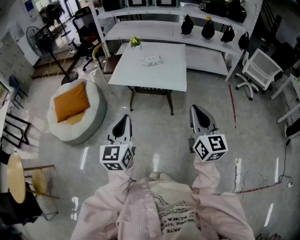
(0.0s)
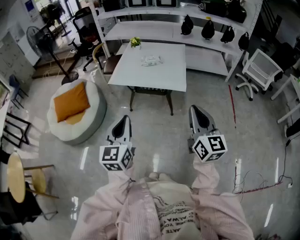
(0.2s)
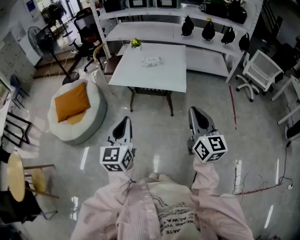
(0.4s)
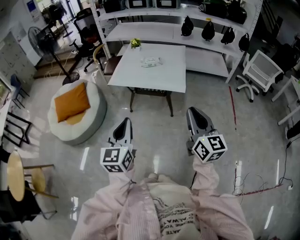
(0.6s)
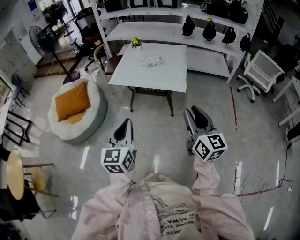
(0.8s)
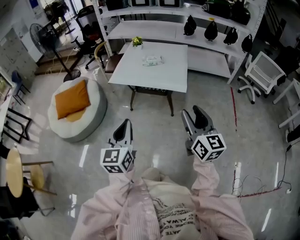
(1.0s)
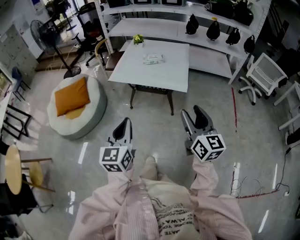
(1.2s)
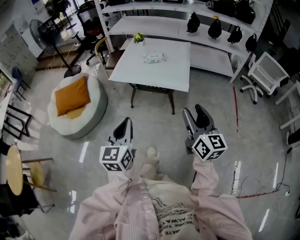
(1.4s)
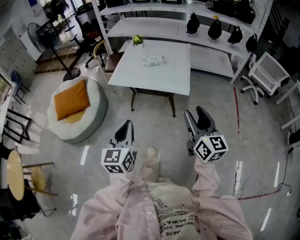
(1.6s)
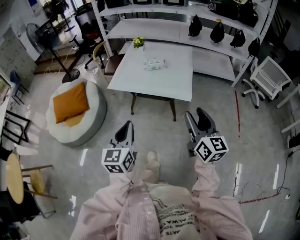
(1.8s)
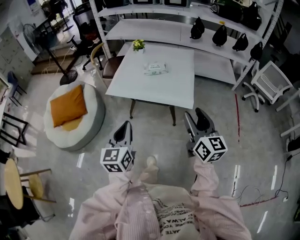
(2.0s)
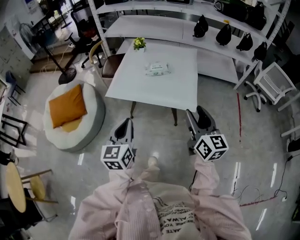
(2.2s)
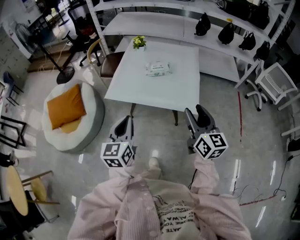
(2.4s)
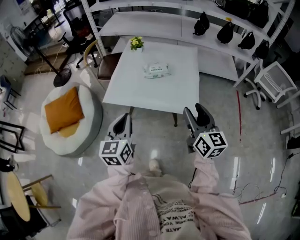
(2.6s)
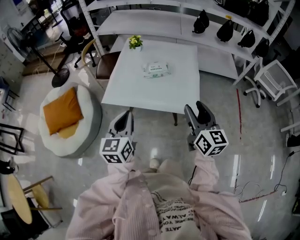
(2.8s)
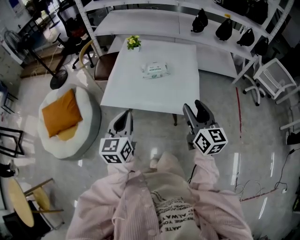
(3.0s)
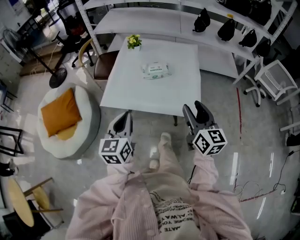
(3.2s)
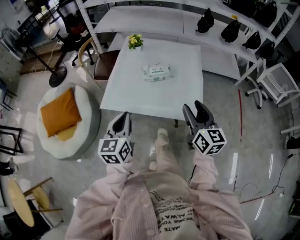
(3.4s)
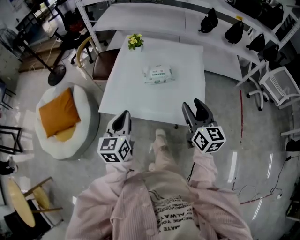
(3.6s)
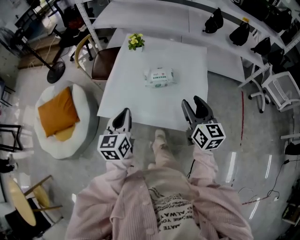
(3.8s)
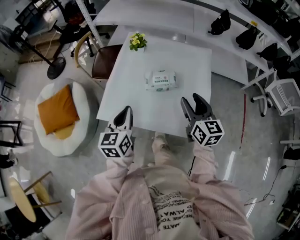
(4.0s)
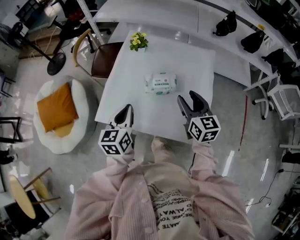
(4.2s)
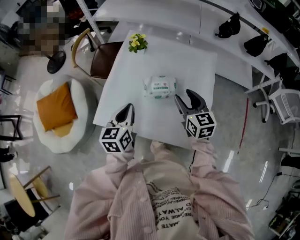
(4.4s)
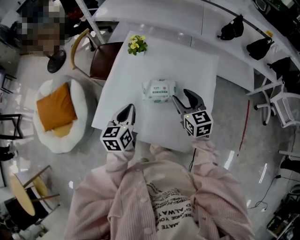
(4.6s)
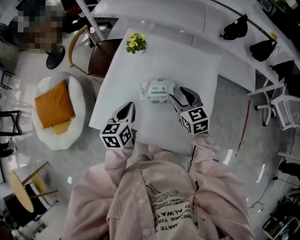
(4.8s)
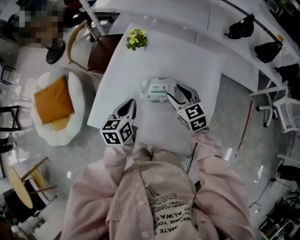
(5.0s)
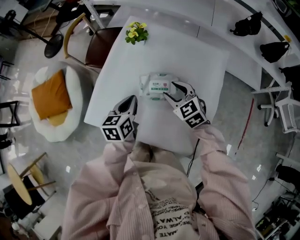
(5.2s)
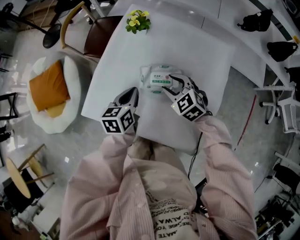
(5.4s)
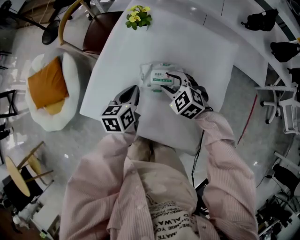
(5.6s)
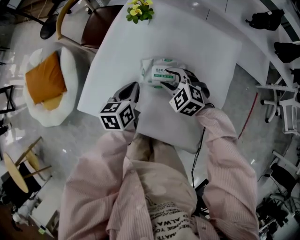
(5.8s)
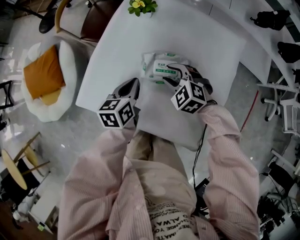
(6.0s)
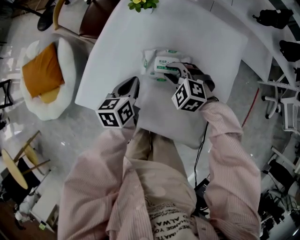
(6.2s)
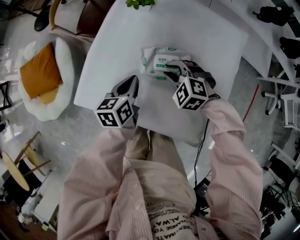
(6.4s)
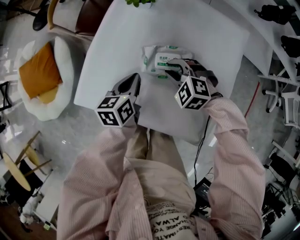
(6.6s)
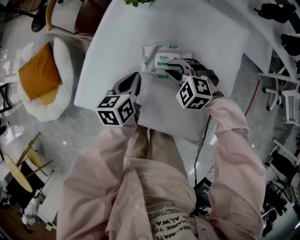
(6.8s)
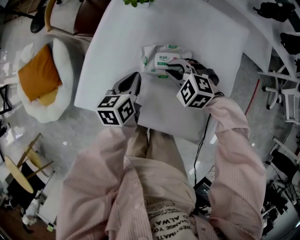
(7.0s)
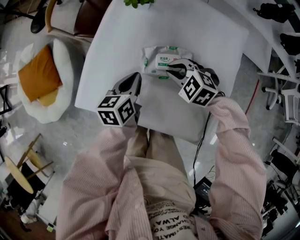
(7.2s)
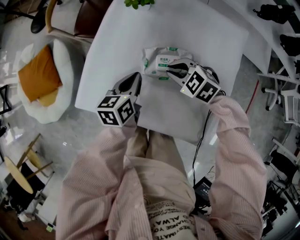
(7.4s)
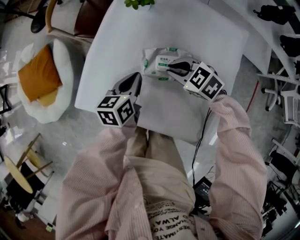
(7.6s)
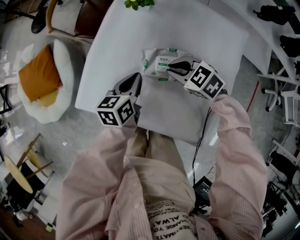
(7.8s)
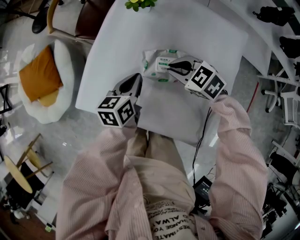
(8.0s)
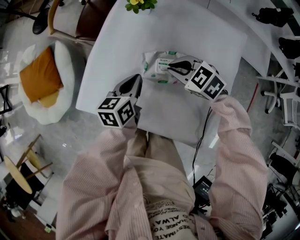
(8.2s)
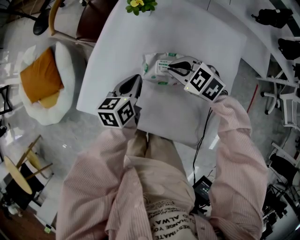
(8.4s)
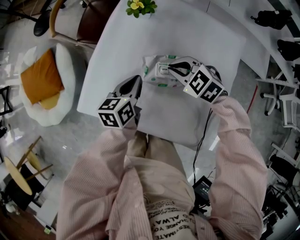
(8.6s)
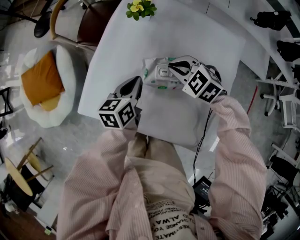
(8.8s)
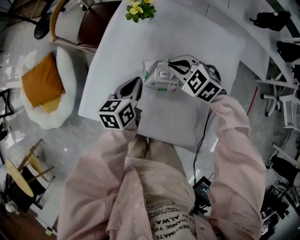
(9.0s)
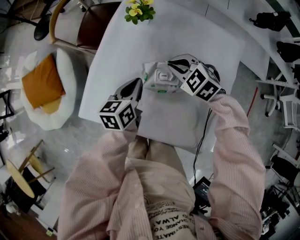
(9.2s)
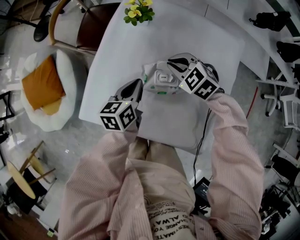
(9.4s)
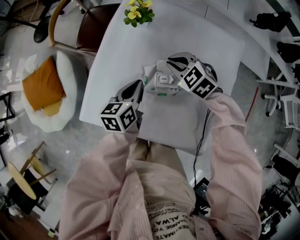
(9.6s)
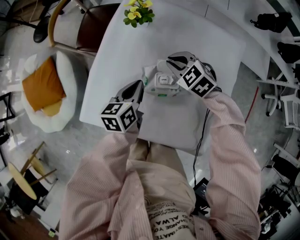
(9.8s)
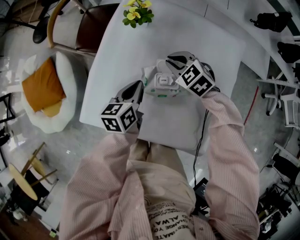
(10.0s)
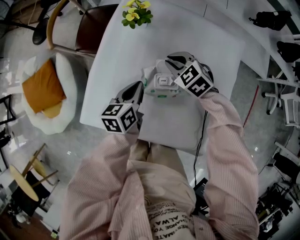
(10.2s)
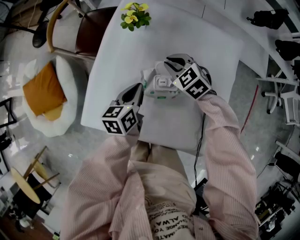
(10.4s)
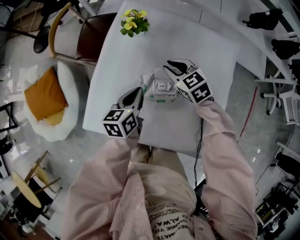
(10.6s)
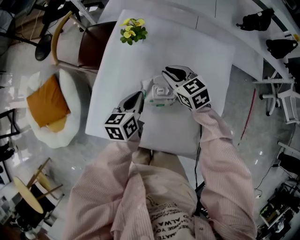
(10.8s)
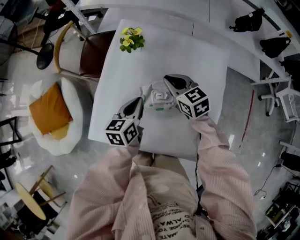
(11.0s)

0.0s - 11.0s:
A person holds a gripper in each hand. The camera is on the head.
0.0s - 1.6s: The left gripper changes place by some 5 cm. Meanwhile the right gripper is displaced forward by roughly 5 cm, and opens its fingers.
1.6s - 3.2s: Both grippers move forward, approximately 30 cm.
3.2s - 4.8s: Both grippers move forward and downward, some 35 cm. The right gripper turns by roughly 30 degrees. Meanwhile the left gripper swivels about 20 degrees.
4.8s - 6.2s: The left gripper moves downward, some 10 cm, while the right gripper moves downward and to the left, roughly 15 cm, rotates around the line of its fingers by approximately 50 degrees, counterclockwise from behind, and closes.
6.2s - 7.8s: The right gripper turns by about 30 degrees.
7.8s - 9.4s: The right gripper travels forward by roughly 5 cm.
9.4s - 11.0s: The right gripper moves upward, approximately 5 cm, and swivels approximately 40 degrees.

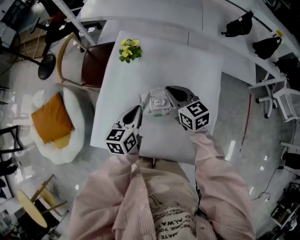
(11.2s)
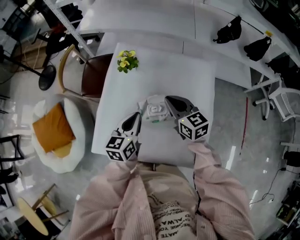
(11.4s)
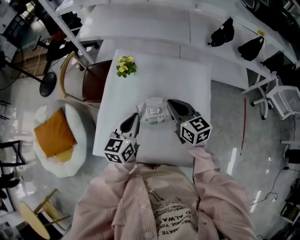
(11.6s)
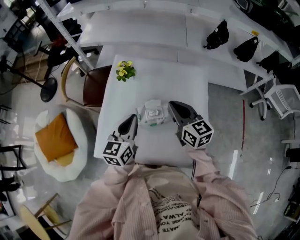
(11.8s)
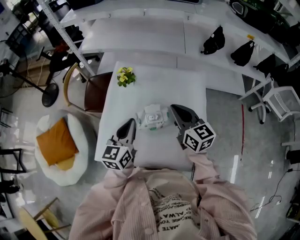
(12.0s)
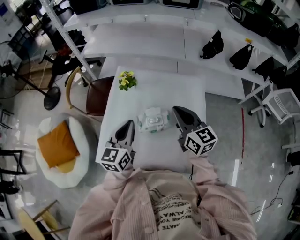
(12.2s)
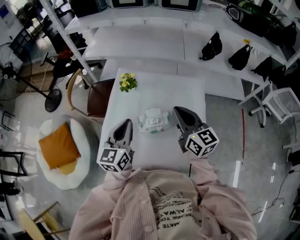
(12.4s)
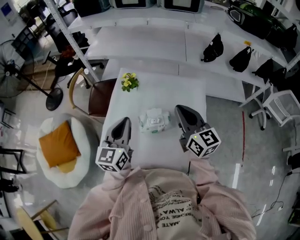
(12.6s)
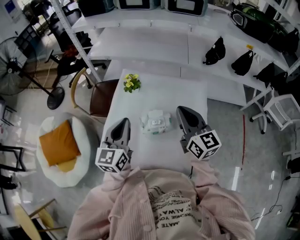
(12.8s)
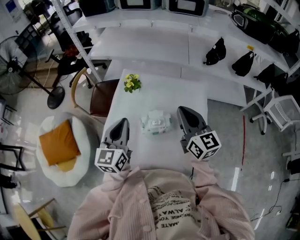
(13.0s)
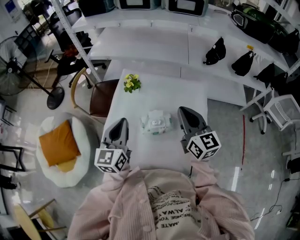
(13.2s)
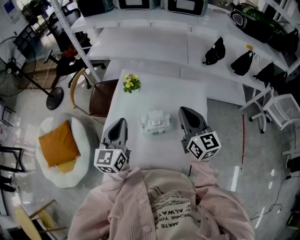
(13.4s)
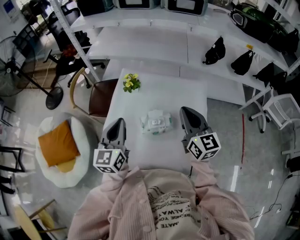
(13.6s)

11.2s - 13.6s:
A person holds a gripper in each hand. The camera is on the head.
11.2s - 12.4s: The left gripper travels upward by approximately 15 cm, and turns by some 20 degrees. The right gripper goes about 20 cm upward and backward, and changes its angle by some 30 degrees.
12.4s - 13.6s: There are only small adjustments of the grippers.

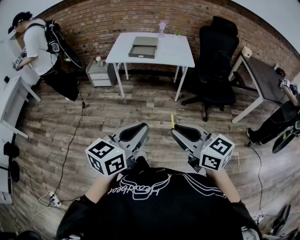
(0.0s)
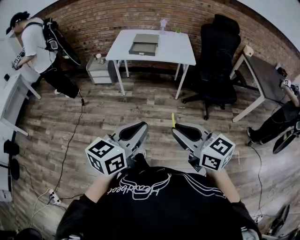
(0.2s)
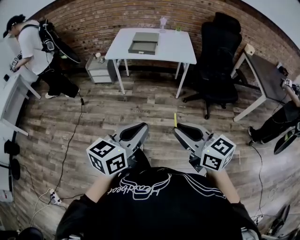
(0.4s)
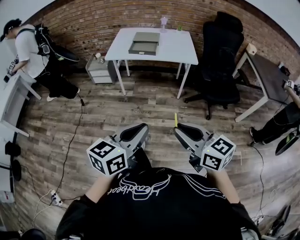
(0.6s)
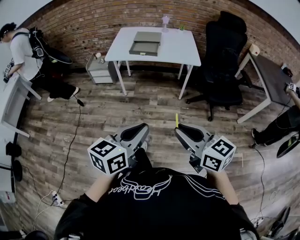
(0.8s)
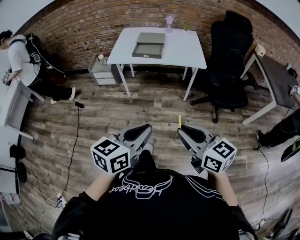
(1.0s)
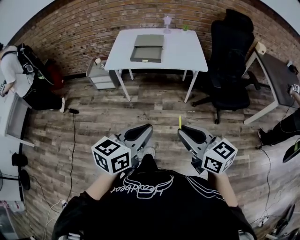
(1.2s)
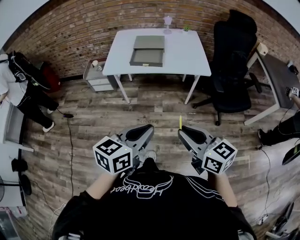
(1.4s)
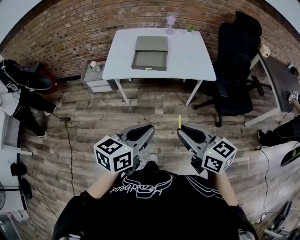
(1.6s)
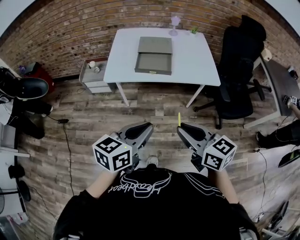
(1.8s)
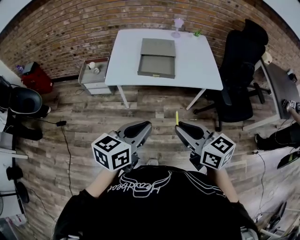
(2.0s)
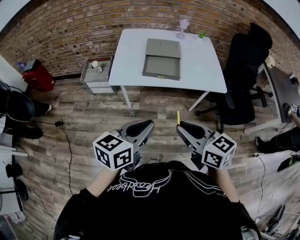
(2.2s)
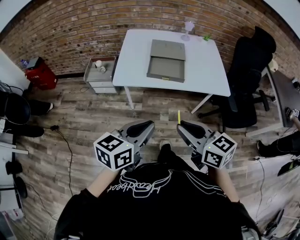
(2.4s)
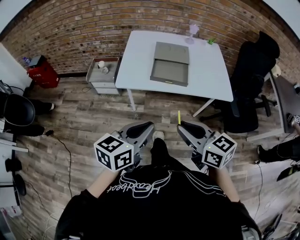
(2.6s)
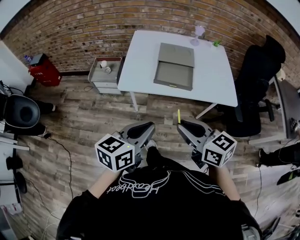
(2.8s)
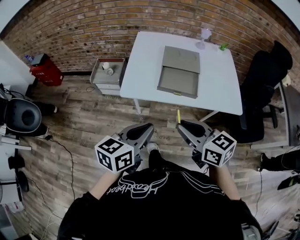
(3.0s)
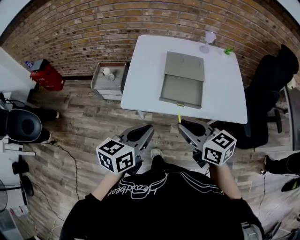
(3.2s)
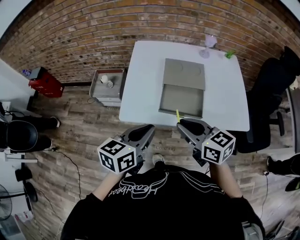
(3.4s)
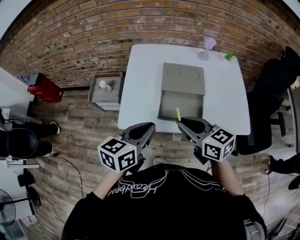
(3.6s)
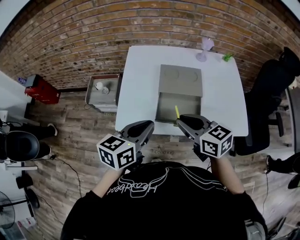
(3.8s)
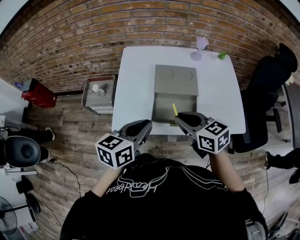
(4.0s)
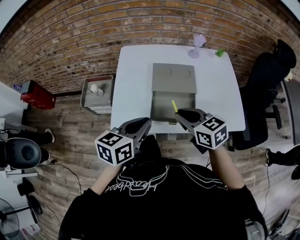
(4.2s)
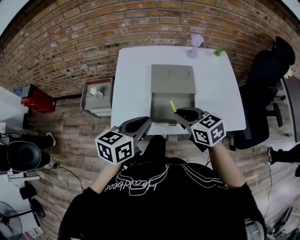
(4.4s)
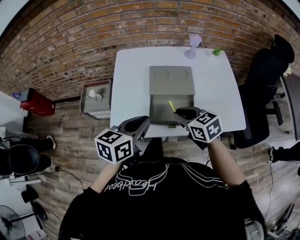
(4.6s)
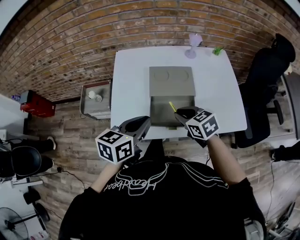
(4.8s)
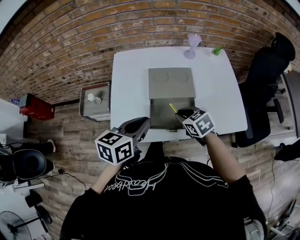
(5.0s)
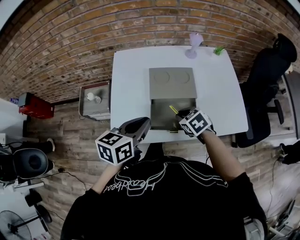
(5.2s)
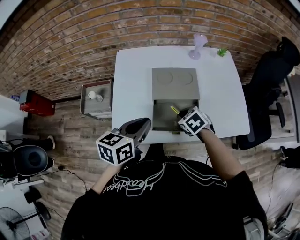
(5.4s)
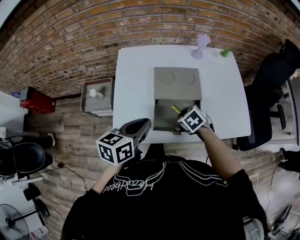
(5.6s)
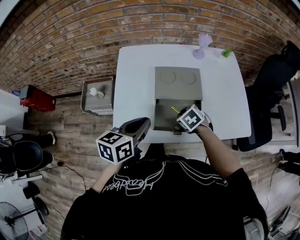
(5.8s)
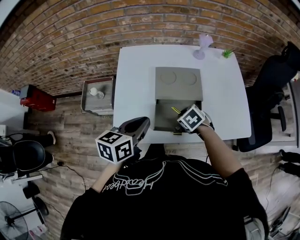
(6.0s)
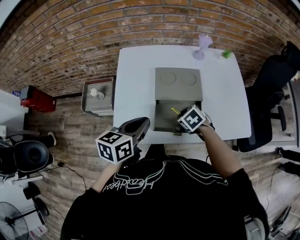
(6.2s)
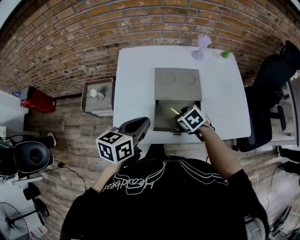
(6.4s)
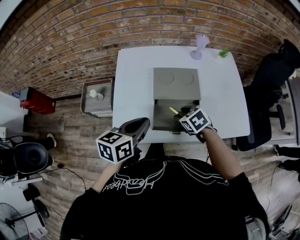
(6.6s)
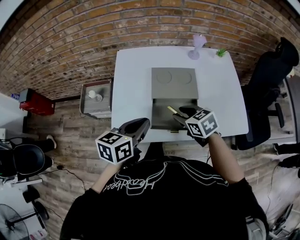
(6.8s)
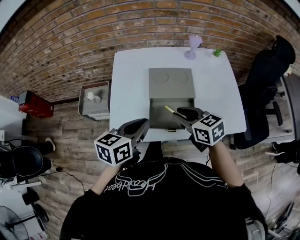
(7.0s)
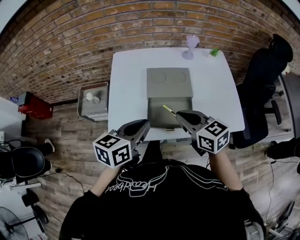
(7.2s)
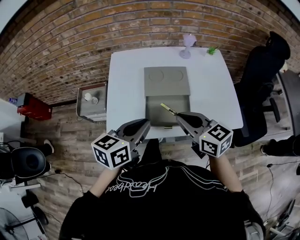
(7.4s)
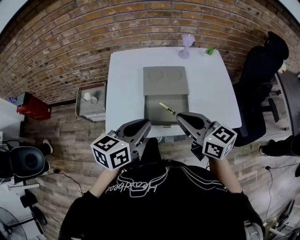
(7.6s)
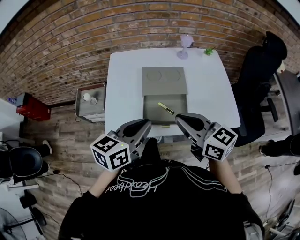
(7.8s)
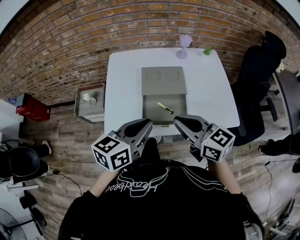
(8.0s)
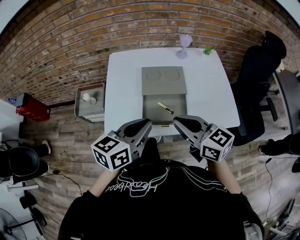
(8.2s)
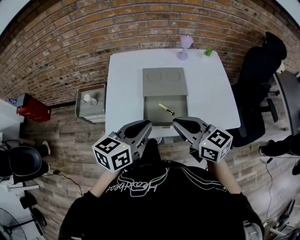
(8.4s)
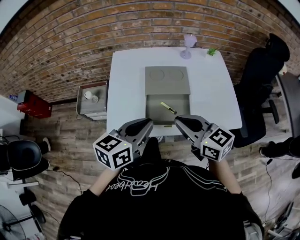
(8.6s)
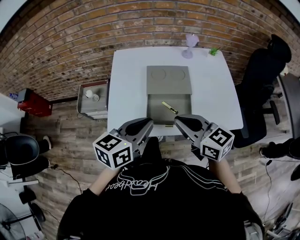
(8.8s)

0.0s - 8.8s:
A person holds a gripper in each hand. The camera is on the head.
0.0s - 1.4s: Both grippers travel together forward, approximately 25 cm.
1.4s - 3.0s: Both grippers travel together forward and to the left, about 30 cm.
3.0s - 4.4s: Both grippers travel together forward, roughly 20 cm.
4.4s - 5.8s: The left gripper heads forward, covering approximately 5 cm. The right gripper shifts about 20 cm downward and forward, and tips its fingers downward by some 40 degrees.
5.8s - 7.4s: The left gripper changes place by roughly 10 cm; the right gripper is displaced upward and backward by roughly 20 cm, angles its fingers upward, by roughly 50 degrees, and opens, then closes again.
7.4s - 8.8s: The grippers stay close to where they were, moving slightly.

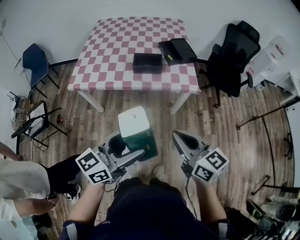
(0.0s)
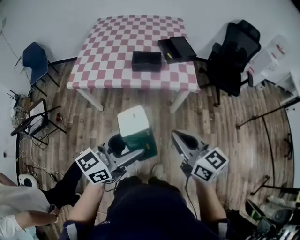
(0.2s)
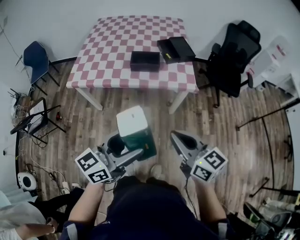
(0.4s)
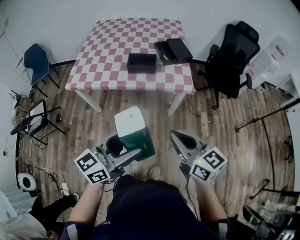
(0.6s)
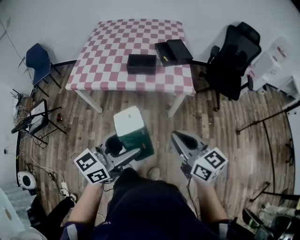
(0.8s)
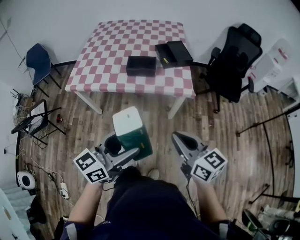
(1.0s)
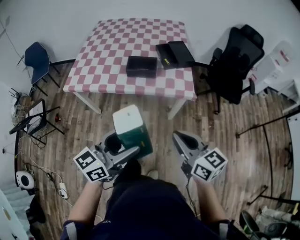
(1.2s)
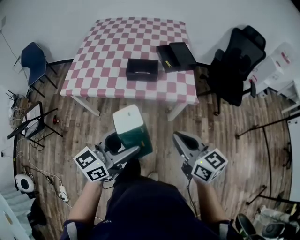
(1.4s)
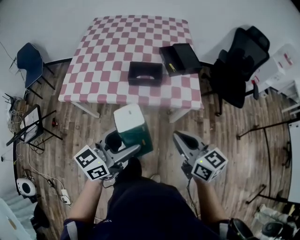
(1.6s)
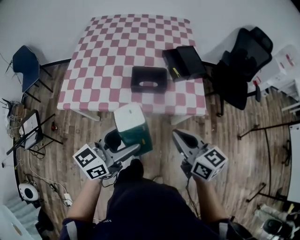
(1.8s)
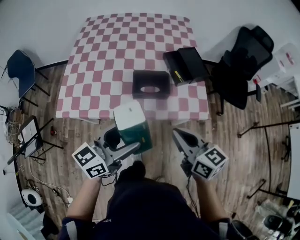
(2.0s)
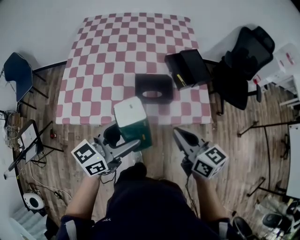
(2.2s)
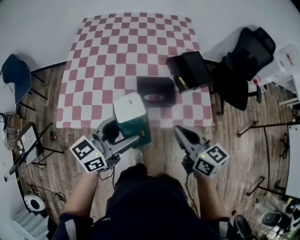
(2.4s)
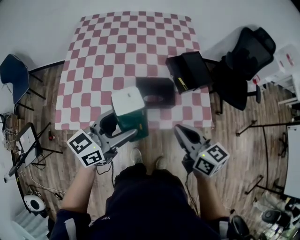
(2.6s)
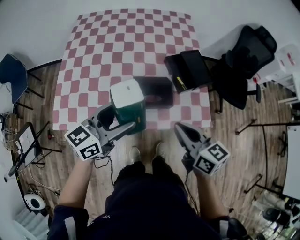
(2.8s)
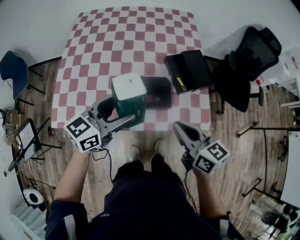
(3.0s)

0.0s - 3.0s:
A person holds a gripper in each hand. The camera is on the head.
0.0s - 1.6s: The grippers both shift forward by about 15 cm.
1.6s - 3.0s: The grippers both shift forward by some 25 cm.
